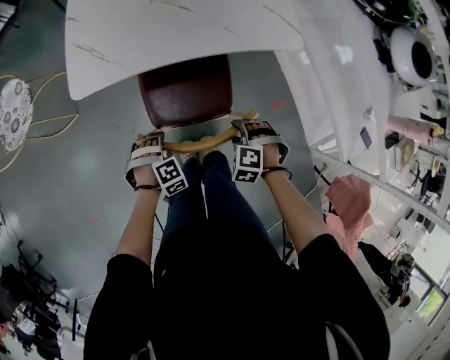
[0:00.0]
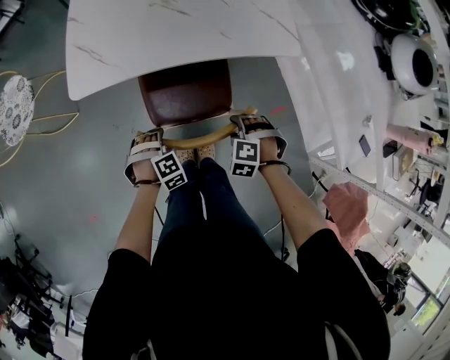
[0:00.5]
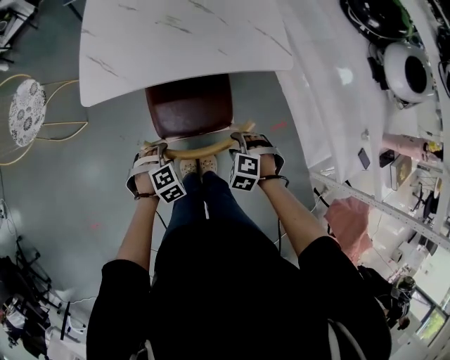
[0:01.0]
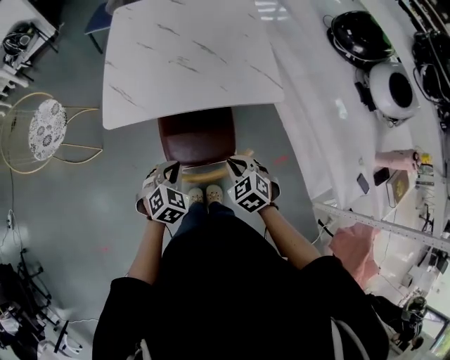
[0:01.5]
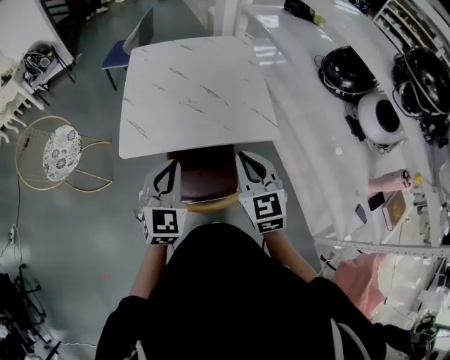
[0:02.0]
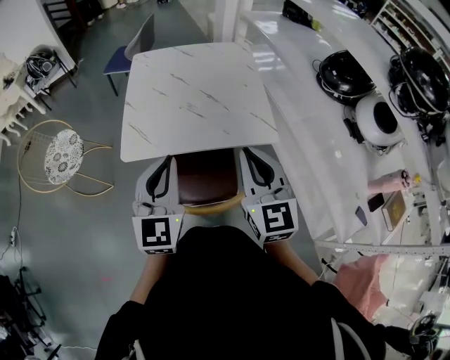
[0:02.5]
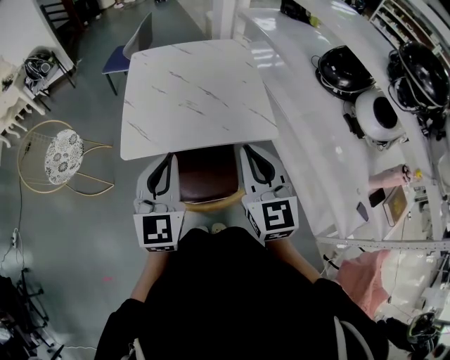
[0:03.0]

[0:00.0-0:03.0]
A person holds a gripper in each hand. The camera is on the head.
0:00.0 to 0:01.5: The two grippers go some 15 cm upward. The left gripper swivels approximately 40 degrees, and closes its fingers; the right gripper changes its angle by approximately 40 degrees, and closes.
0:01.5 to 0:03.0: Both grippers travel together upward, approximately 30 cm. The left gripper angles its fingers upward, by some 50 degrees. The right gripper tips its fingers upward by some 50 degrees.

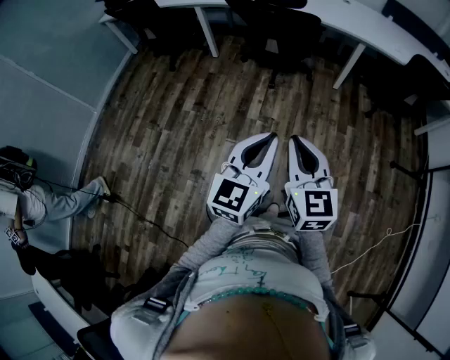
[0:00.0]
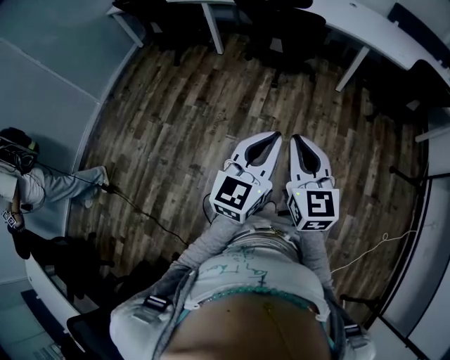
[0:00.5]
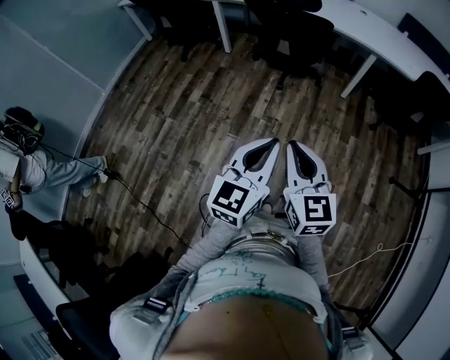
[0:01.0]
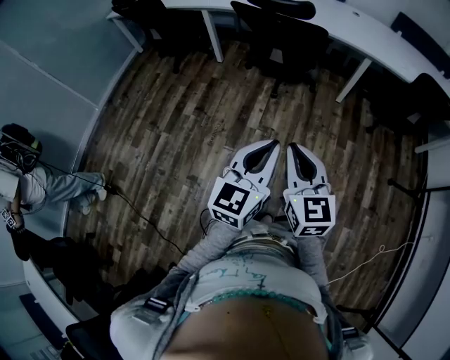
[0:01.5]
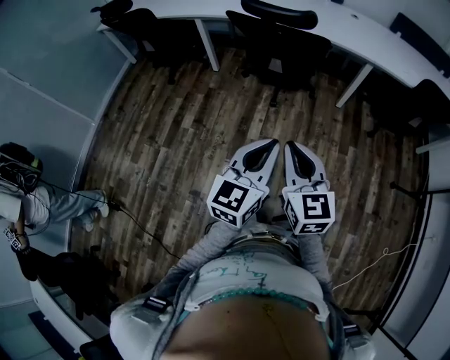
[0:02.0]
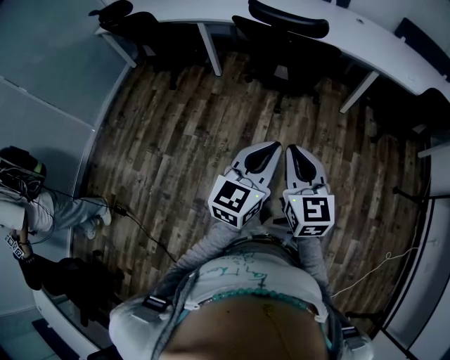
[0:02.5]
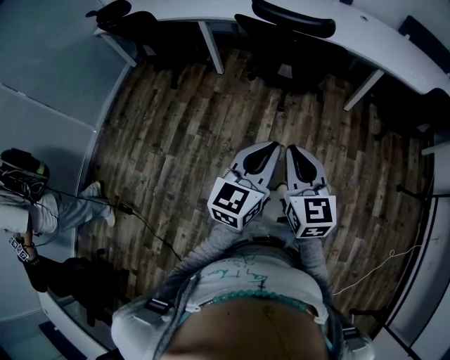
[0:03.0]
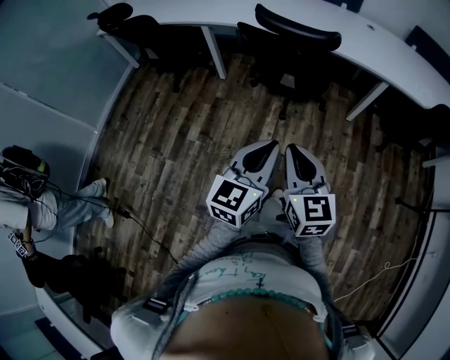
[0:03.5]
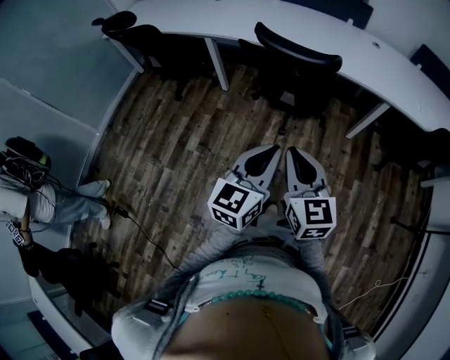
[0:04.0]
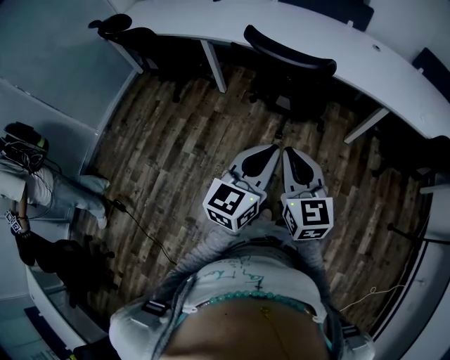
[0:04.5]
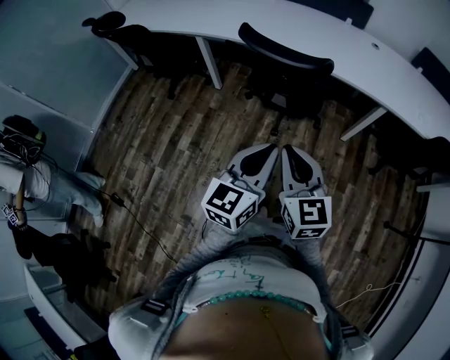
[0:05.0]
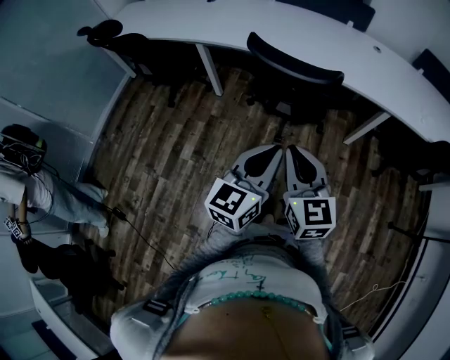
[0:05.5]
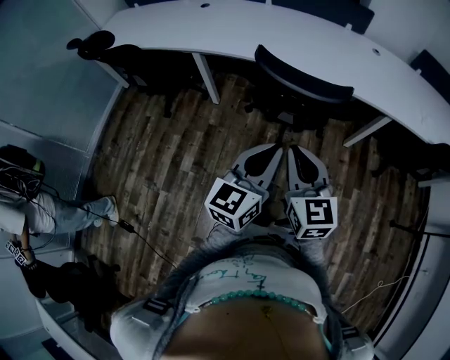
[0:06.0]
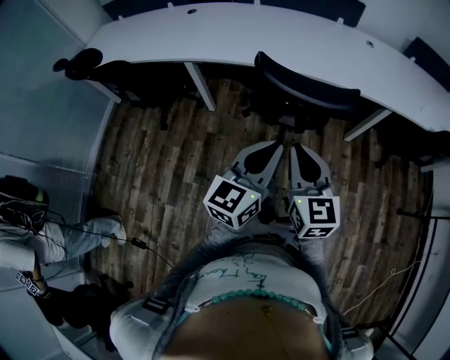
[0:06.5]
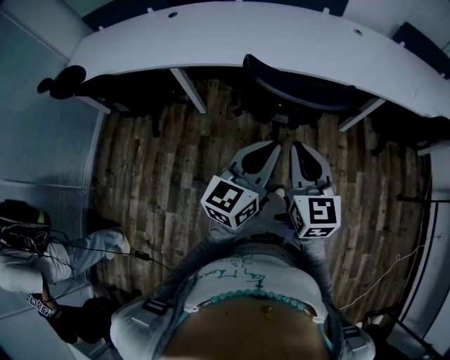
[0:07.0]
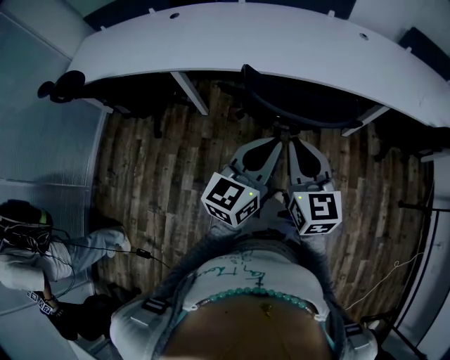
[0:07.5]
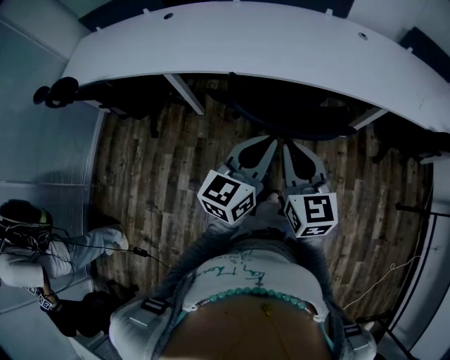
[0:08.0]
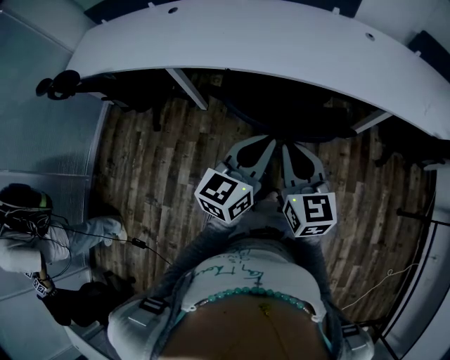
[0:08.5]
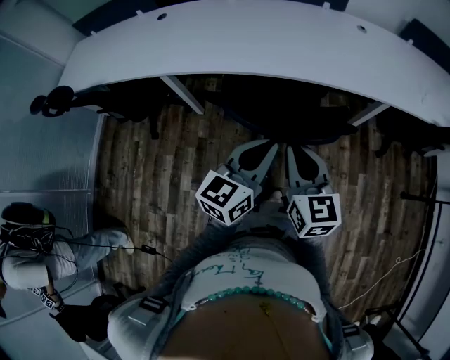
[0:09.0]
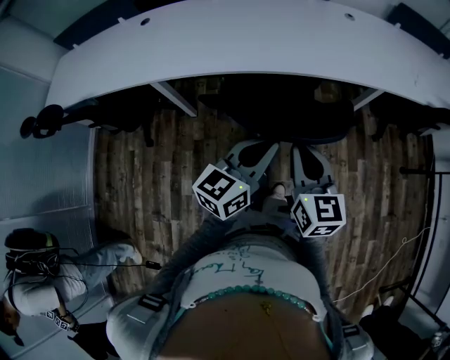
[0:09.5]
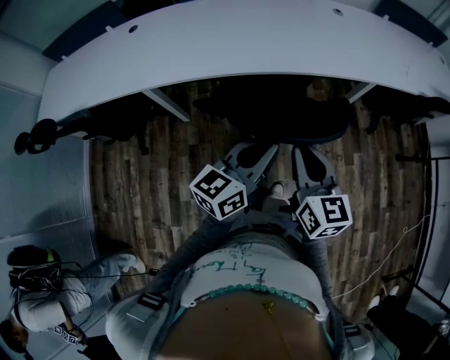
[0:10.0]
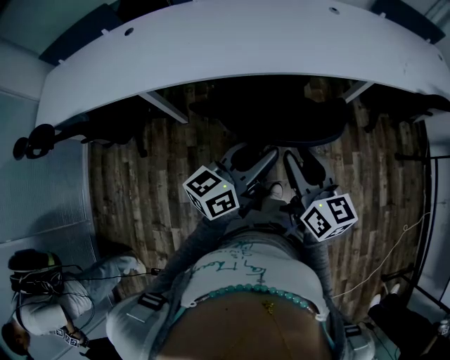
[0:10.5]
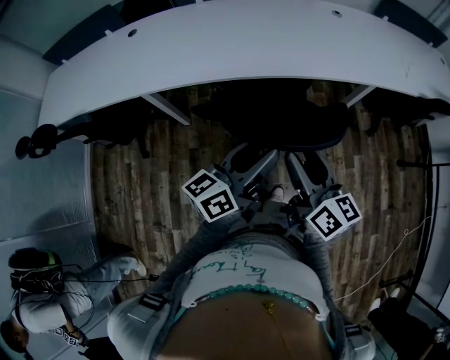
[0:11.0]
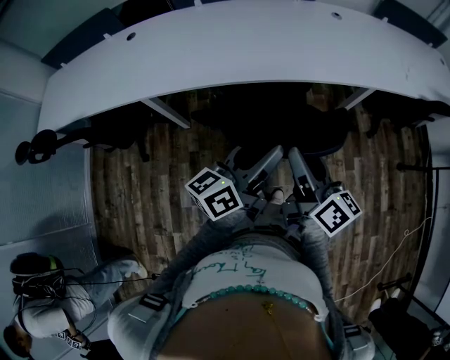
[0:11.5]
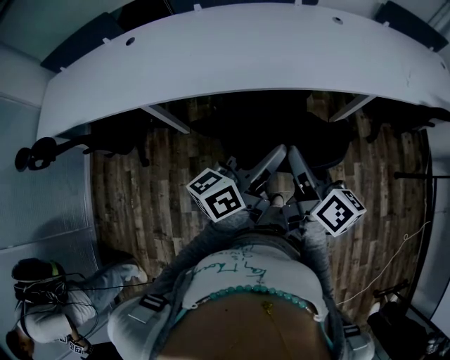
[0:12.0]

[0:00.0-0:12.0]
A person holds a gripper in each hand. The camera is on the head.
0:00.0 to 0:02.0: Both grippers move forward, roughly 15 cm.
0:02.0 to 0:04.0: The grippers both shift forward by roughly 20 cm.
0:04.0 to 0:06.0: The two grippers go approximately 15 cm forward.
0:06.0 to 0:08.0: The grippers both shift forward by roughly 15 cm.
0:08.0 to 0:10.0: The left gripper swivels some 20 degrees.
0:10.0 to 0:12.0: The two grippers go approximately 5 cm forward. The right gripper changes its angle by about 40 degrees, and opens up, while the left gripper swivels roughly 20 degrees, and opens its fingers.

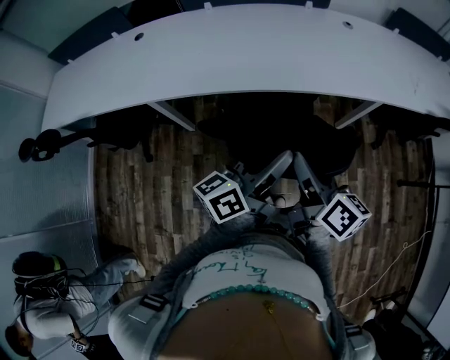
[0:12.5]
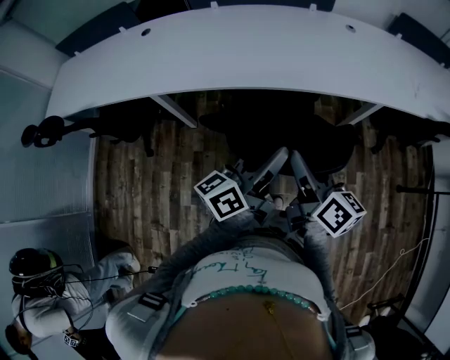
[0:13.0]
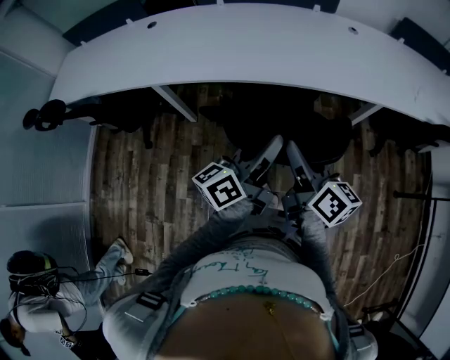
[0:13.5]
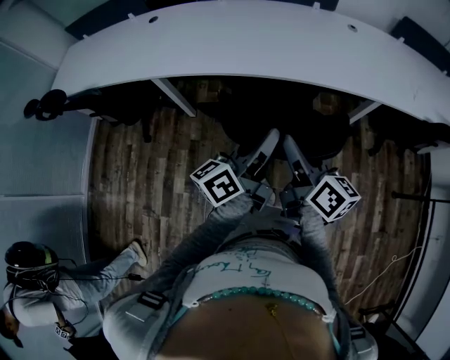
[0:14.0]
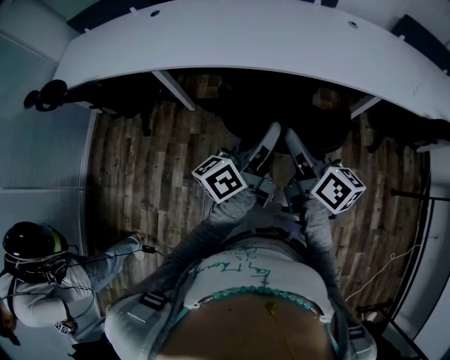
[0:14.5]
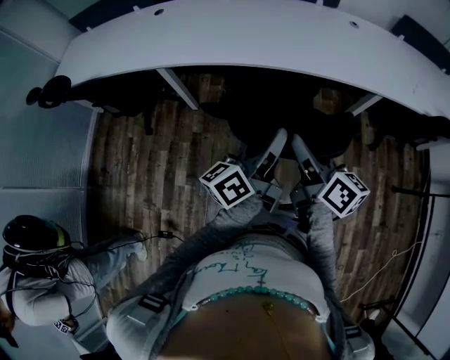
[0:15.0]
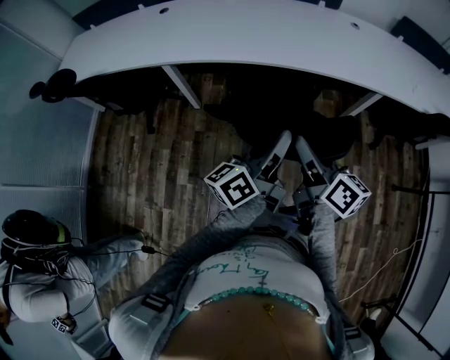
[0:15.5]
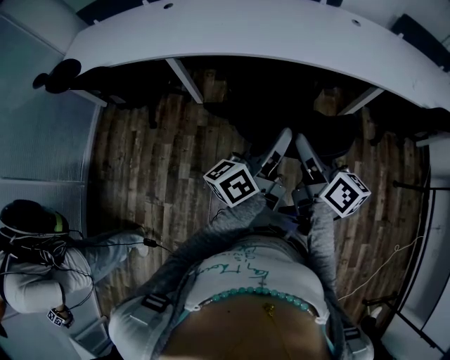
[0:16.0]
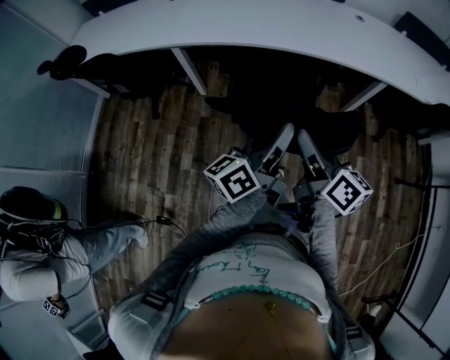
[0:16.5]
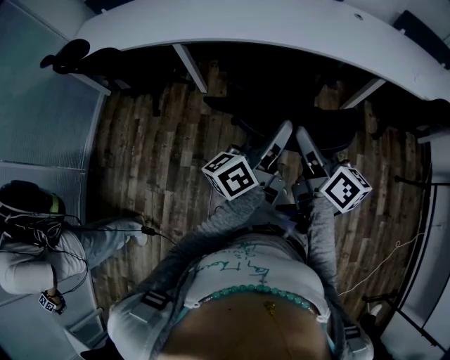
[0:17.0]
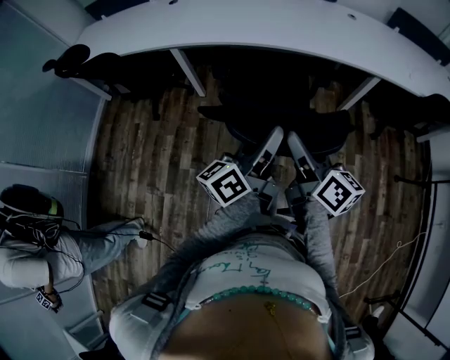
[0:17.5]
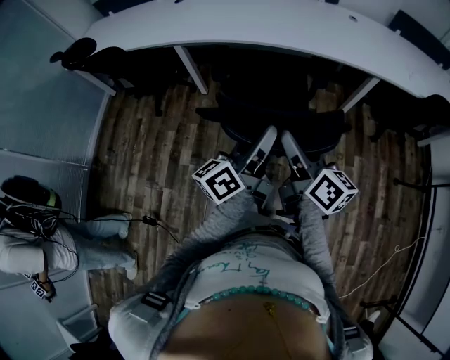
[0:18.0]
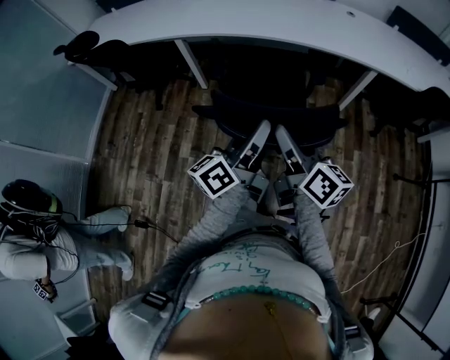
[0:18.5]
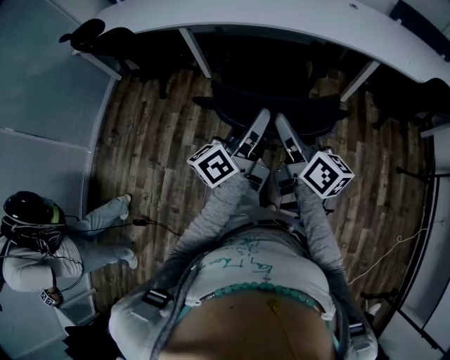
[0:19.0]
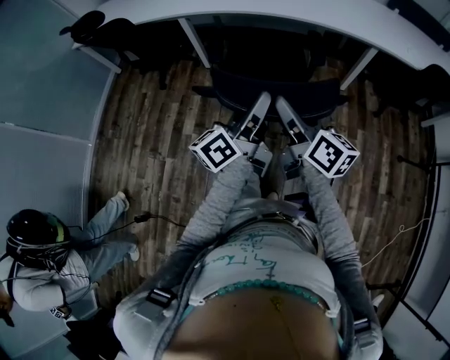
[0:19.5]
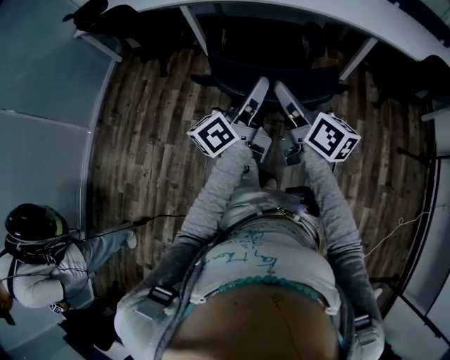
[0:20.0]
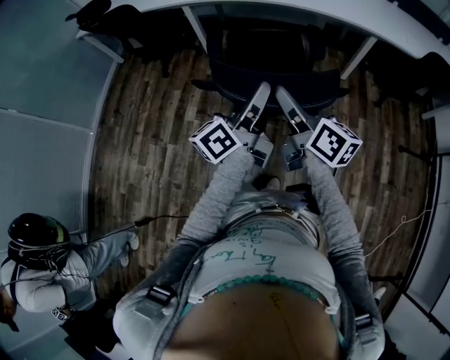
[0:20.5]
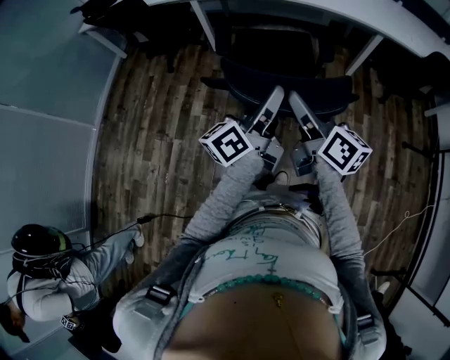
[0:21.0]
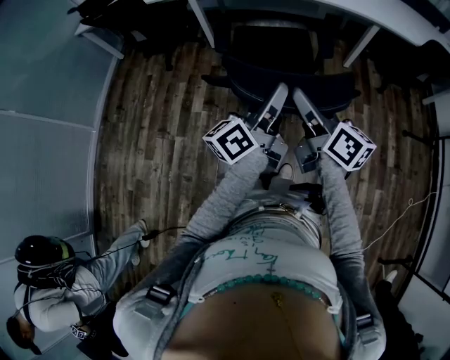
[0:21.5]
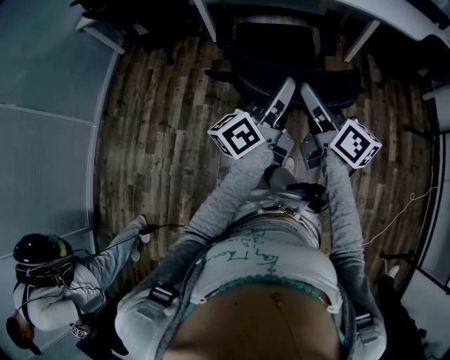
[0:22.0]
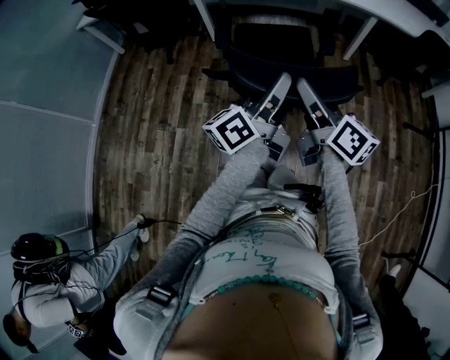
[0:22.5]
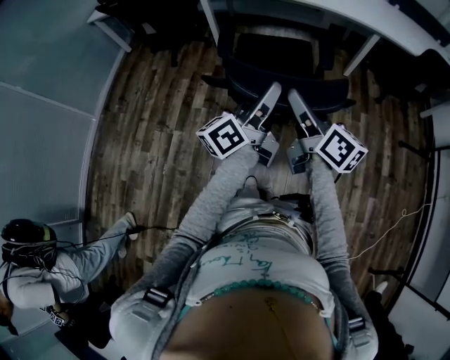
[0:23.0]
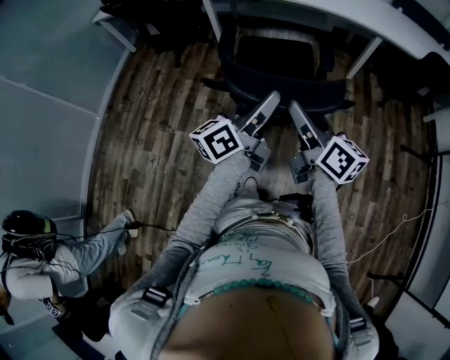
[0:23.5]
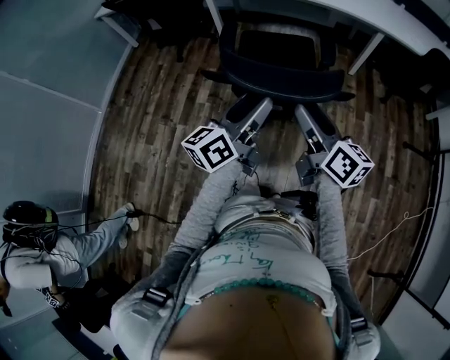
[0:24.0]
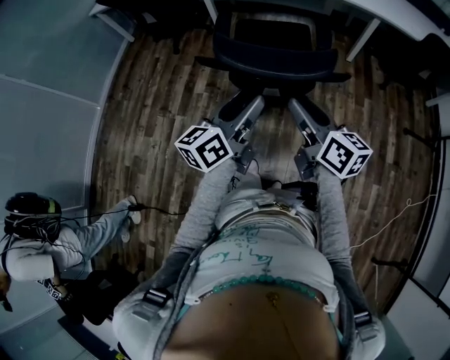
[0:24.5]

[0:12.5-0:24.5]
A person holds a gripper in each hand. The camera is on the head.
0:12.5 to 0:14.5: The grippers both shift backward by some 5 cm. The left gripper closes its fingers.
0:14.5 to 0:16.5: Both grippers travel together backward, approximately 10 cm.
0:16.5 to 0:18.5: The grippers both shift backward by approximately 15 cm.
0:18.5 to 0:20.5: The grippers both shift backward by roughly 10 cm.
0:20.5 to 0:22.5: Both grippers travel together backward and to the left, about 15 cm.
0:22.5 to 0:24.5: The right gripper shifts roughly 10 cm backward and to the right, while the left gripper travels backward by approximately 10 cm, swivels about 20 degrees, and opens its fingers.
